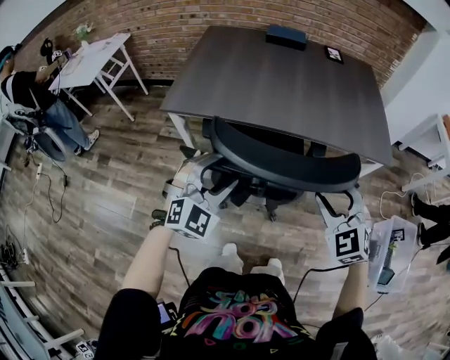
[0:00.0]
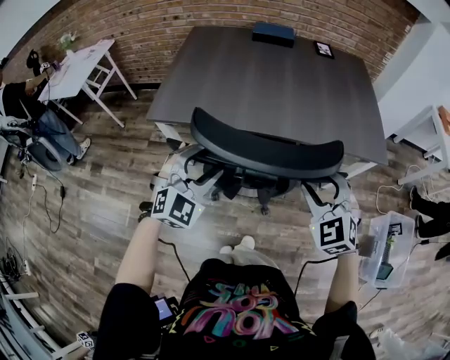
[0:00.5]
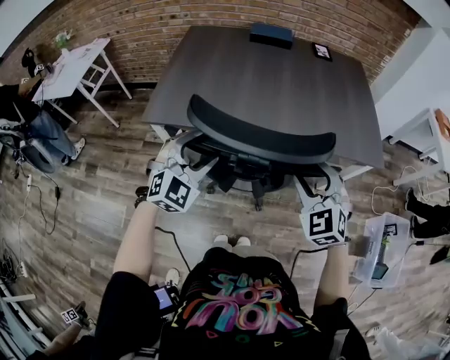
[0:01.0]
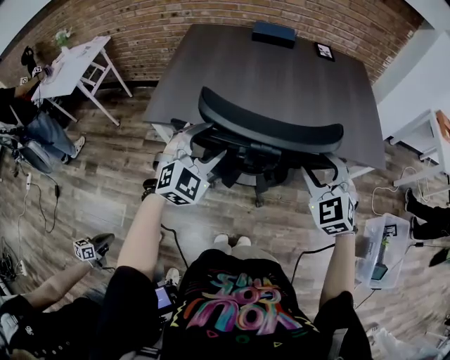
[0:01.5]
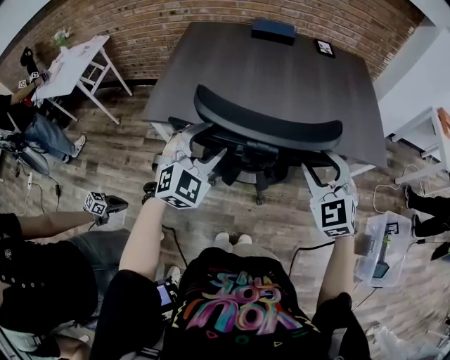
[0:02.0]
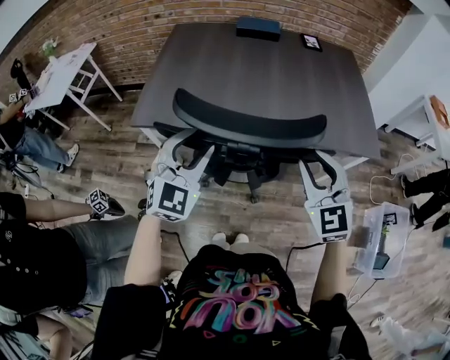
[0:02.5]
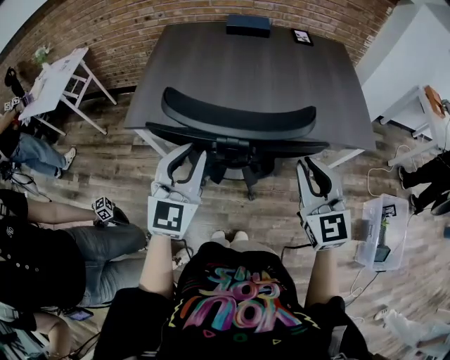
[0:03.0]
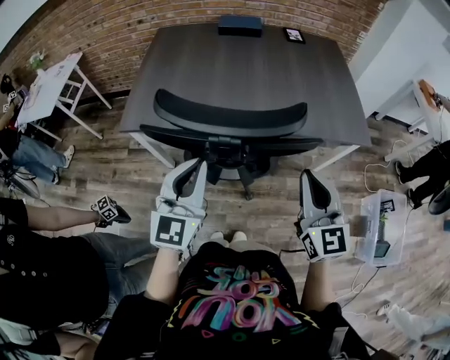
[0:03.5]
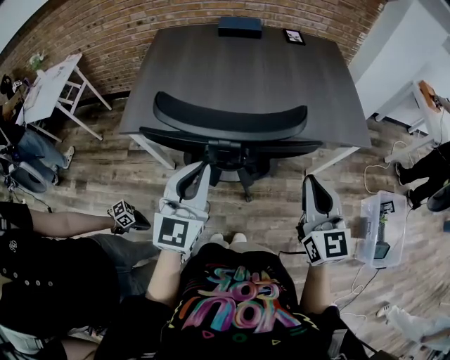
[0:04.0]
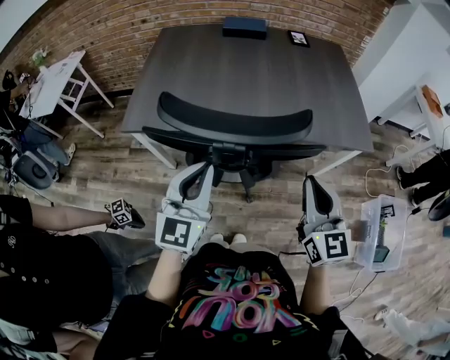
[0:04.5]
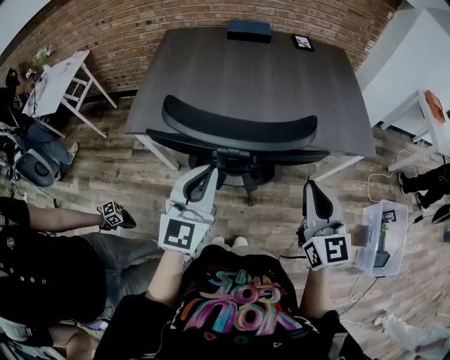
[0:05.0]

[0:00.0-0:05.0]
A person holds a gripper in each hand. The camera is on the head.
0:00.0 to 0:02.5: The grippers both shift forward by about 10 cm. The right gripper changes its angle by roughly 20 degrees, and closes.
0:02.5 to 0:05.0: Both grippers move backward, about 5 cm. The left gripper turns by roughly 30 degrees, and closes; the right gripper changes its angle by roughly 30 degrees, and closes up.

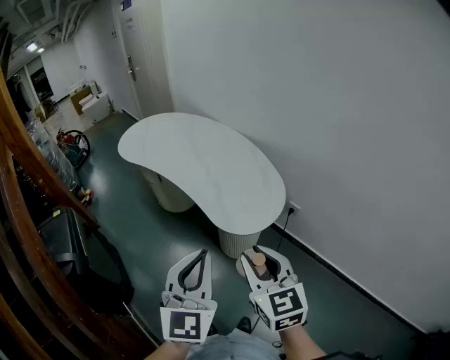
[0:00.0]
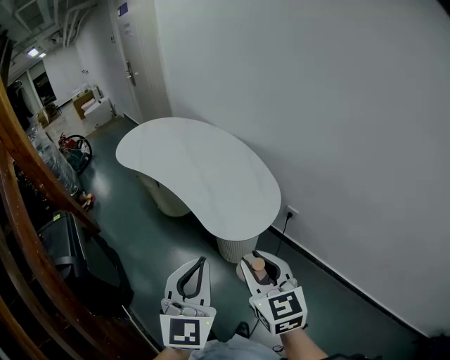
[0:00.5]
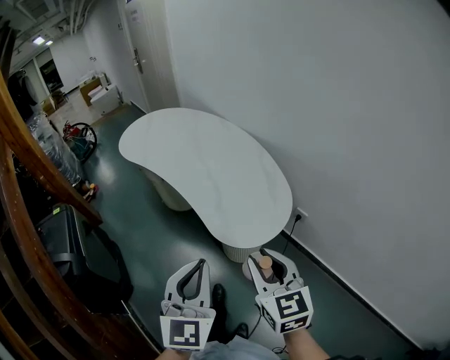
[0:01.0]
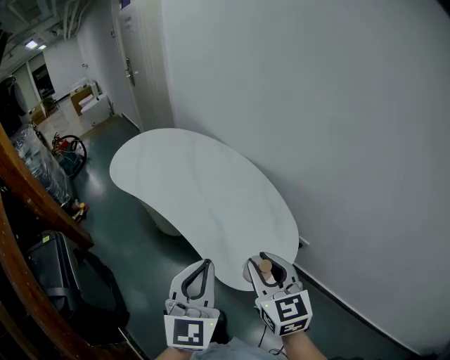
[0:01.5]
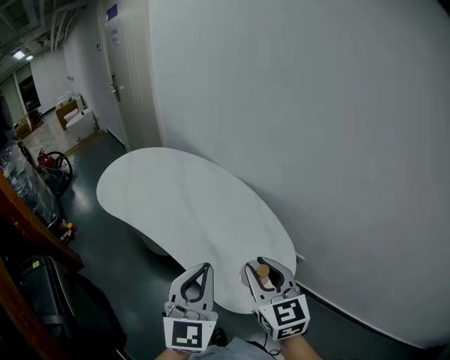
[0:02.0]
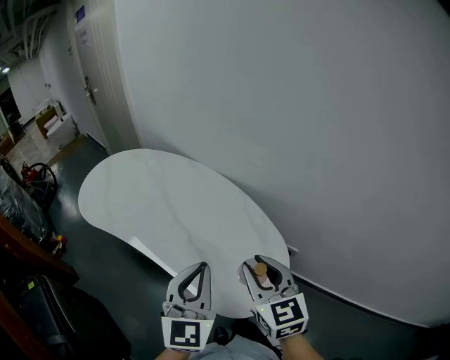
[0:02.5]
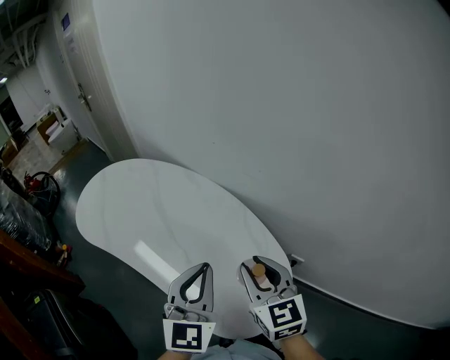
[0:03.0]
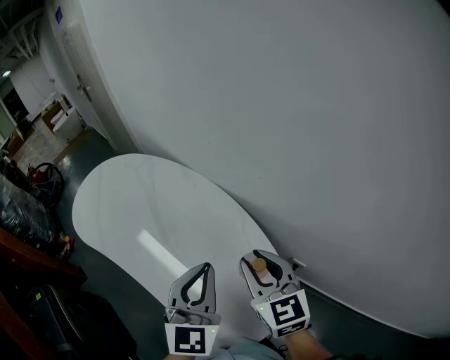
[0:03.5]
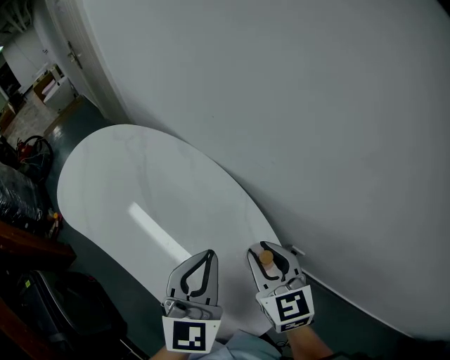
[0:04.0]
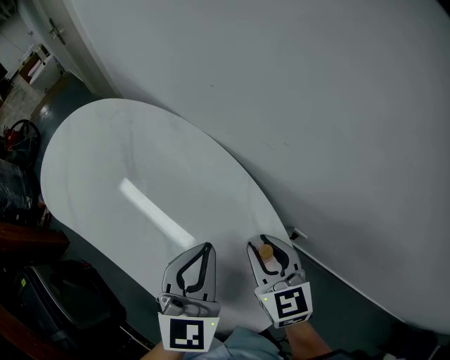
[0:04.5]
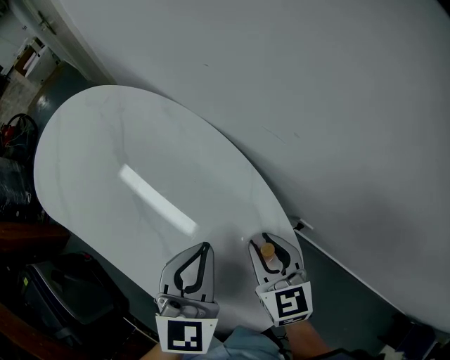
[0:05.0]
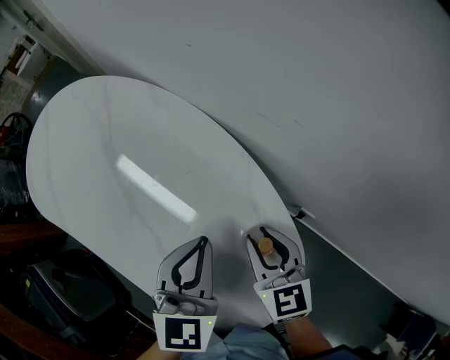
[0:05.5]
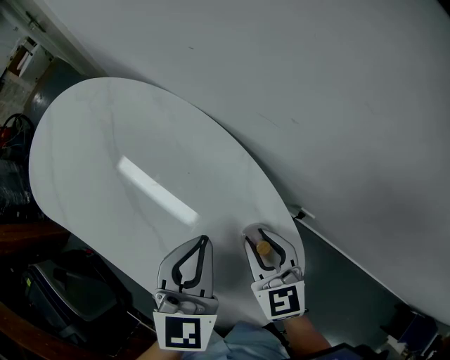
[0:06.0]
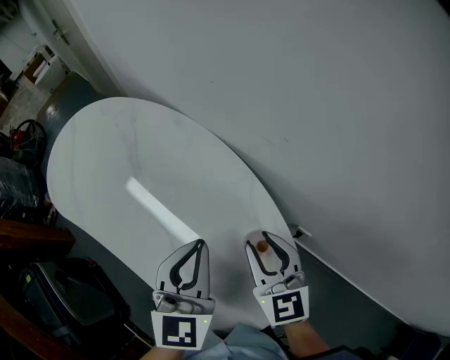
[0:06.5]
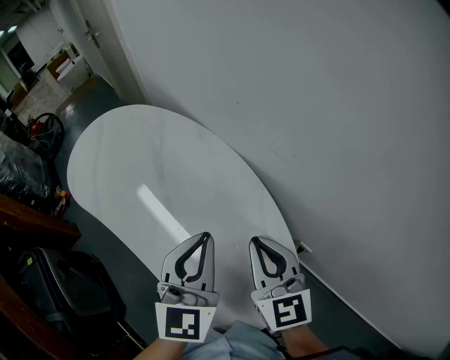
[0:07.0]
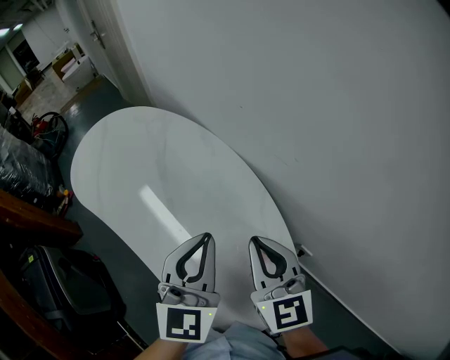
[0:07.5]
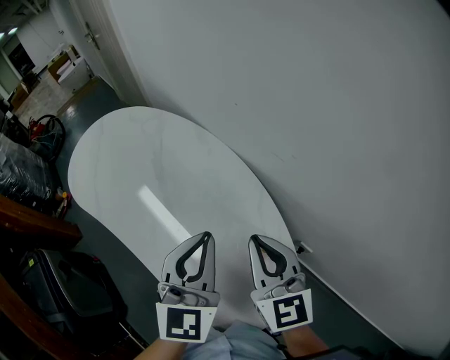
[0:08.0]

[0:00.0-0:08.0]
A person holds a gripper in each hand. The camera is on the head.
0:00.0 to 0:02.0: Both grippers move forward, some 20 cm.
0:02.0 to 0:04.0: The left gripper travels forward and to the right by roughly 15 cm. The right gripper moves forward, to the right and downward, roughly 15 cm.
0:04.0 to 0:06.0: Both grippers travel together downward, roughly 10 cm.
0:06.0 to 0:08.0: The left gripper is displaced upward by approximately 10 cm, and swivels about 20 degrees, while the right gripper is displaced upward by approximately 15 cm, changes its angle by some 30 degrees, and closes up.

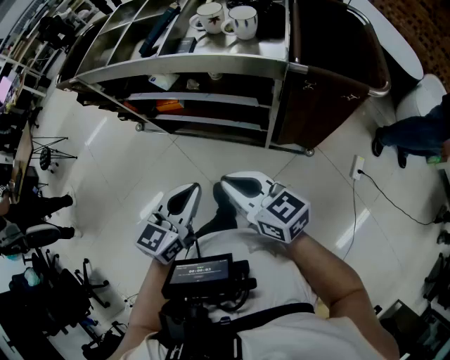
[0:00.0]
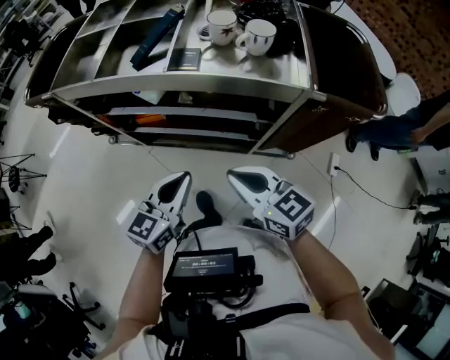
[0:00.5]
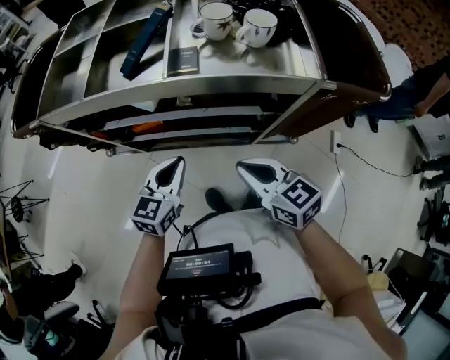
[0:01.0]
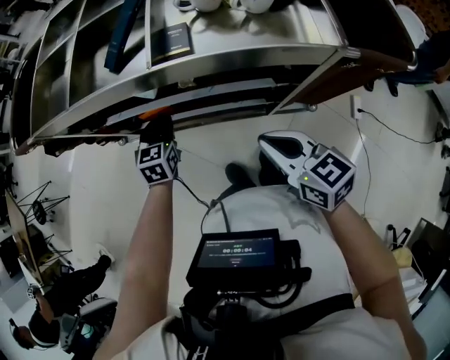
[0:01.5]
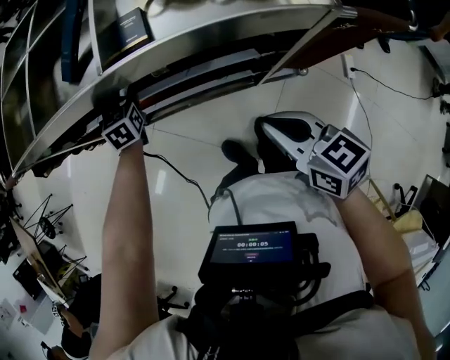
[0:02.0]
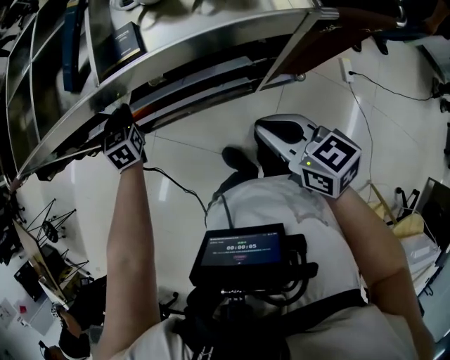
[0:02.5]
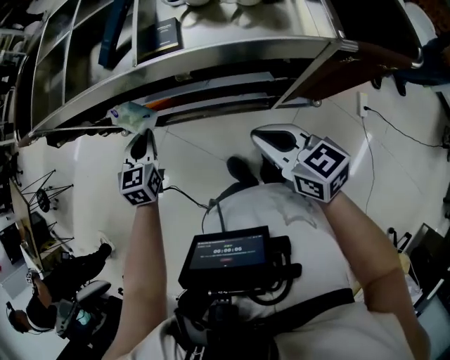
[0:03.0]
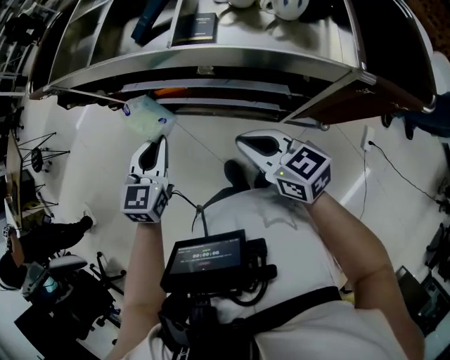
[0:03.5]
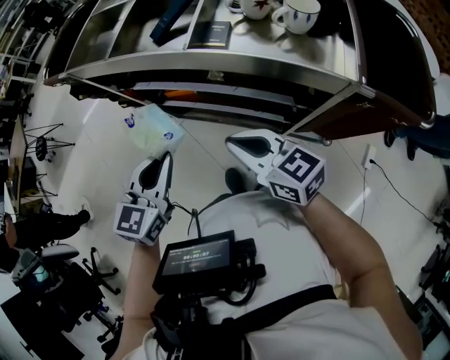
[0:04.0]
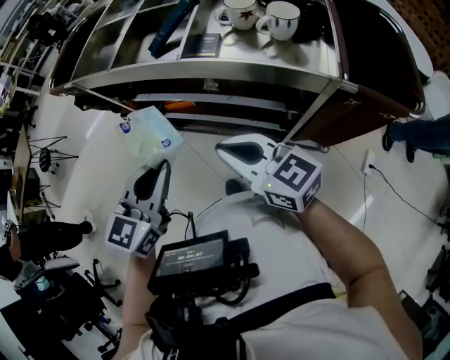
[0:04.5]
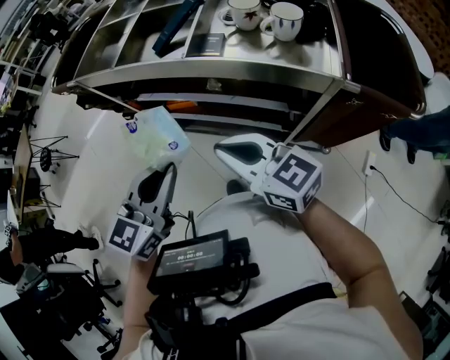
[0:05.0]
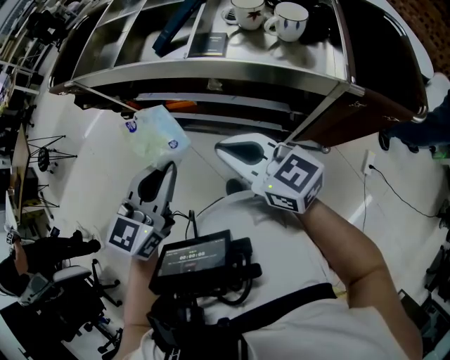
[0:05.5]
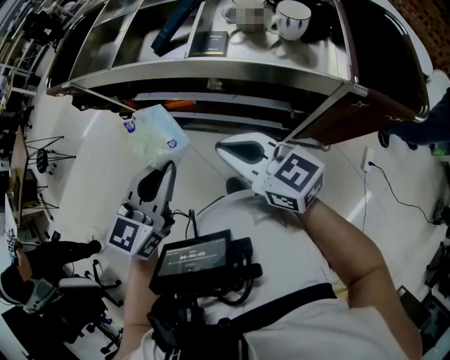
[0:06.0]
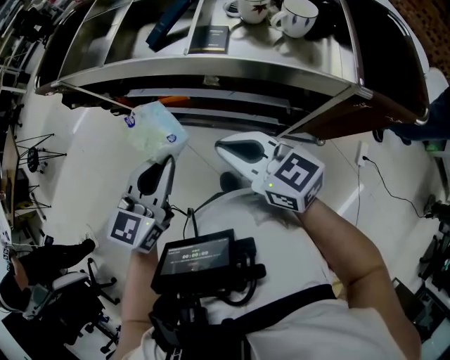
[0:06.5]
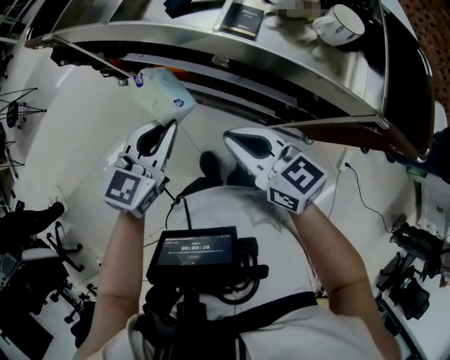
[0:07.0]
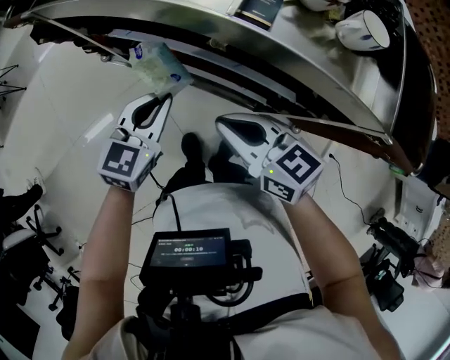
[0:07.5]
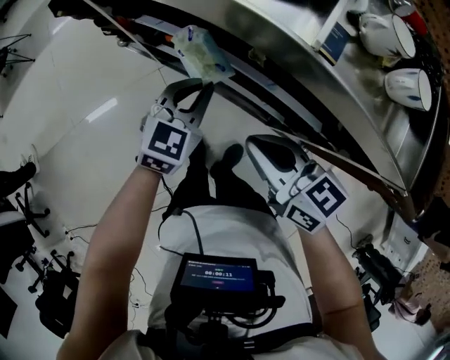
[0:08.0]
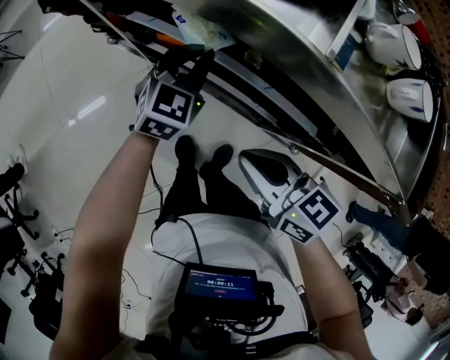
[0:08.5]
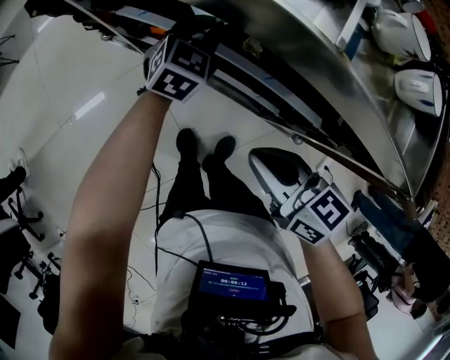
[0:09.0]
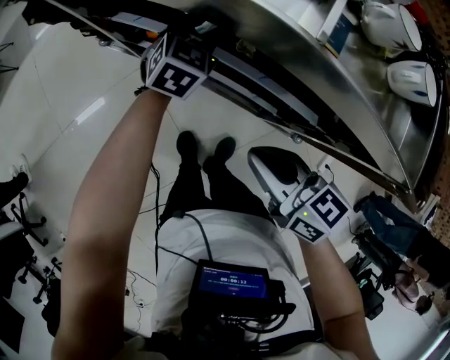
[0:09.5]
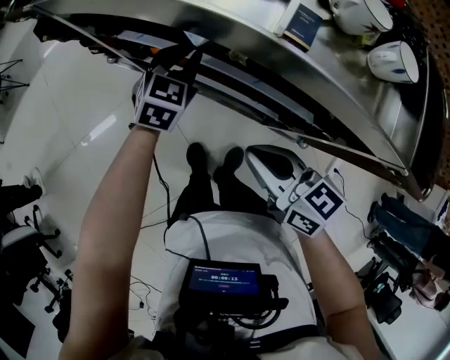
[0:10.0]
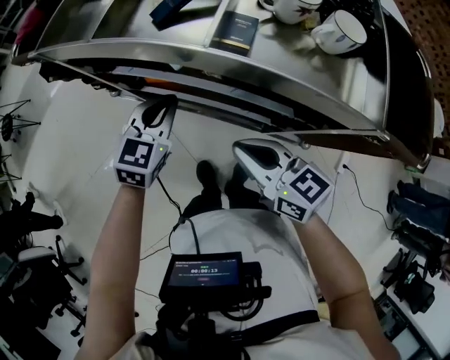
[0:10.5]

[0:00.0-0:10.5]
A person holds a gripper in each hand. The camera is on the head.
0:00.0 to 0:02.0: The right gripper travels forward and downward by about 15 cm, and rotates roughly 30 degrees, while the left gripper is displaced forward and downward by some 50 cm, swivels some 30 degrees, and opens its fingers.
0:02.0 to 0:04.0: The right gripper moves to the left and upward, roughly 10 cm, and turns by some 30 degrees. The left gripper moves backward and upward, some 35 cm, and closes its fingers.
0:06.5 to 0:08.5: The left gripper heads forward and downward, covering approximately 25 cm. Meanwhile the right gripper moves downward, approximately 10 cm.
0:08.5 to 0:10.5: The right gripper changes place by approximately 5 cm. The left gripper shifts roughly 10 cm upward and backward, and opens, then closes once more.

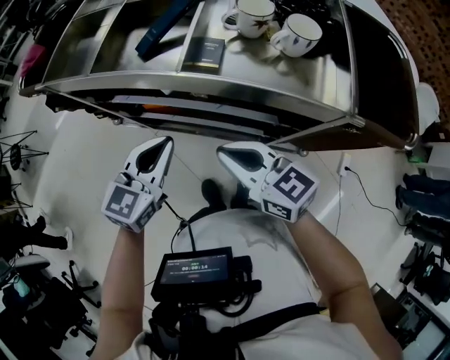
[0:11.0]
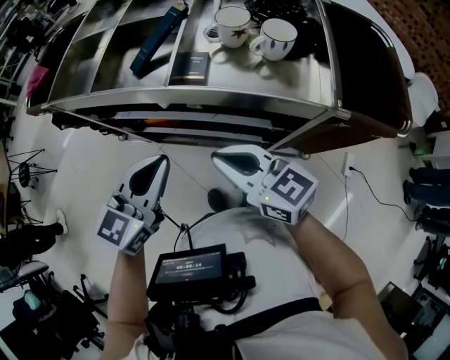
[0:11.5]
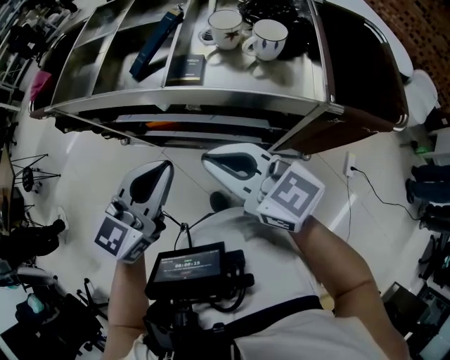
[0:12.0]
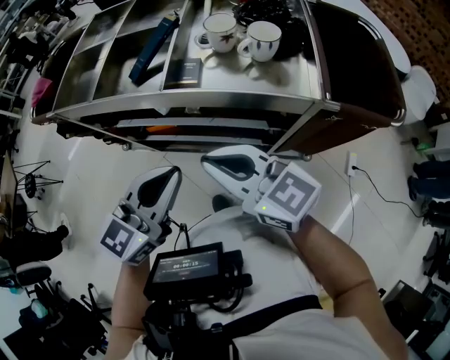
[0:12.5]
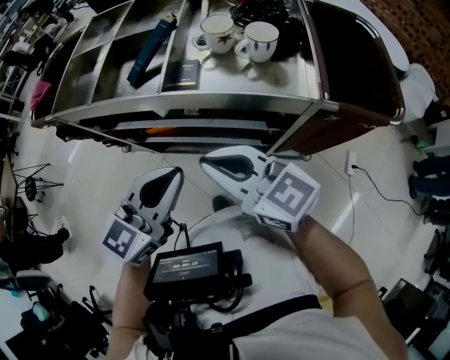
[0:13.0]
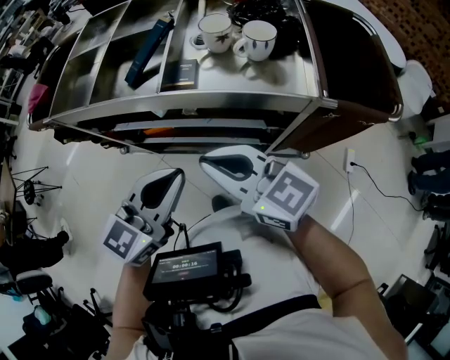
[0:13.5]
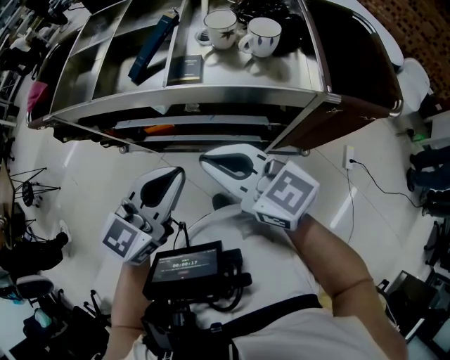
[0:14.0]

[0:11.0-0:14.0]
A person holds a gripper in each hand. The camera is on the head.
0:11.0 to 0:12.5: The right gripper moves upward, about 10 cm. Meanwhile the left gripper shifts roughly 15 cm upward, backward and to the right.
0:12.5 to 0:14.0: There are only small adjustments of the grippers.
